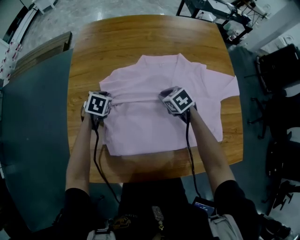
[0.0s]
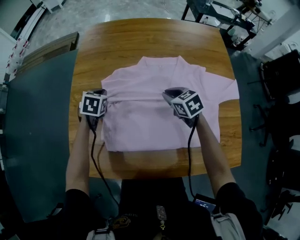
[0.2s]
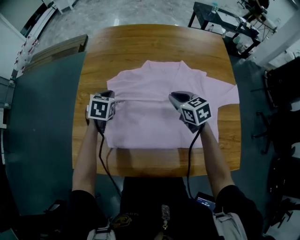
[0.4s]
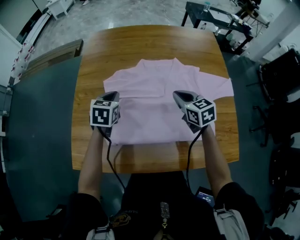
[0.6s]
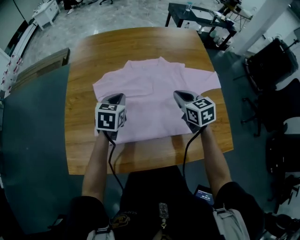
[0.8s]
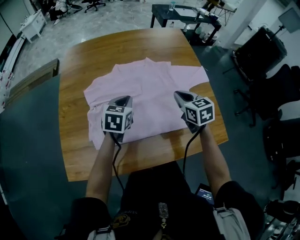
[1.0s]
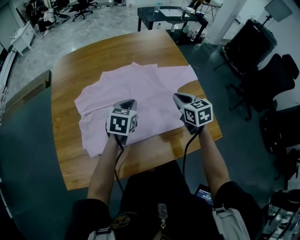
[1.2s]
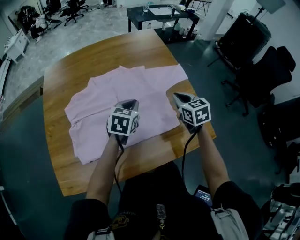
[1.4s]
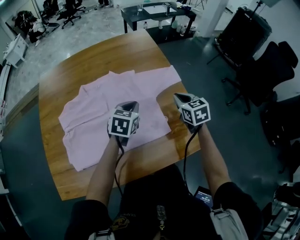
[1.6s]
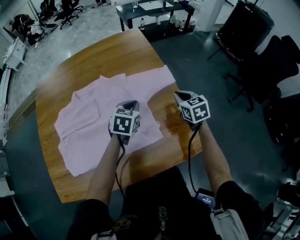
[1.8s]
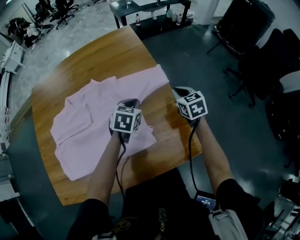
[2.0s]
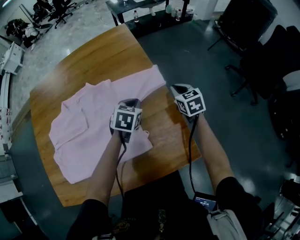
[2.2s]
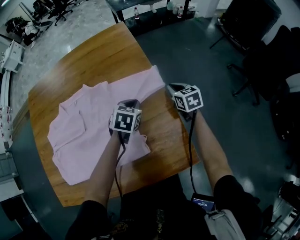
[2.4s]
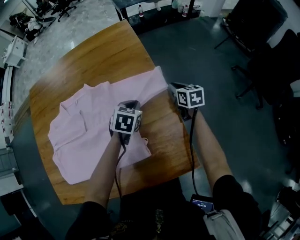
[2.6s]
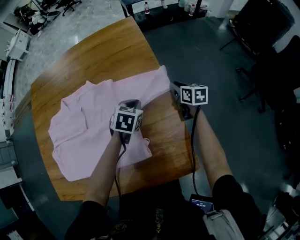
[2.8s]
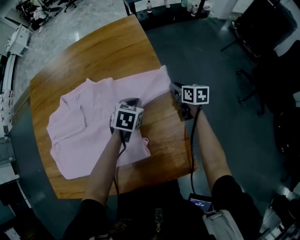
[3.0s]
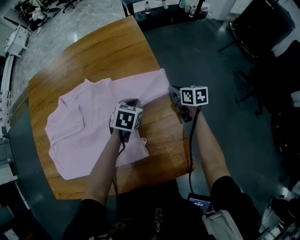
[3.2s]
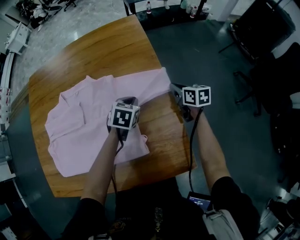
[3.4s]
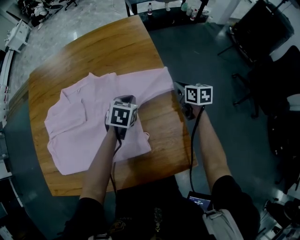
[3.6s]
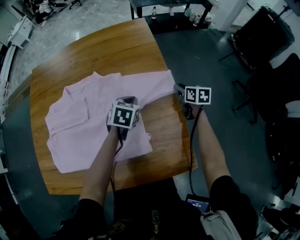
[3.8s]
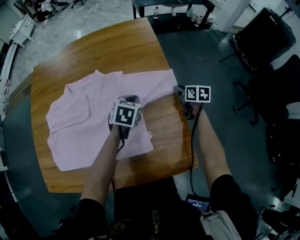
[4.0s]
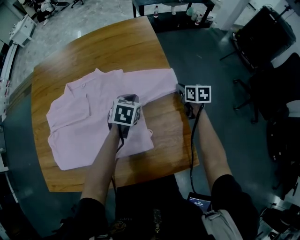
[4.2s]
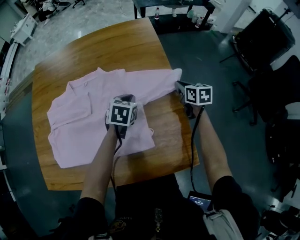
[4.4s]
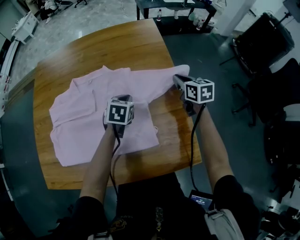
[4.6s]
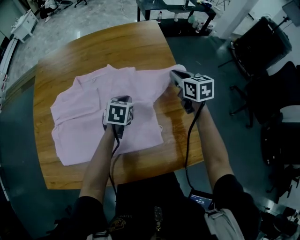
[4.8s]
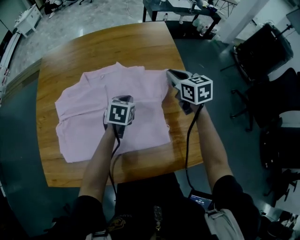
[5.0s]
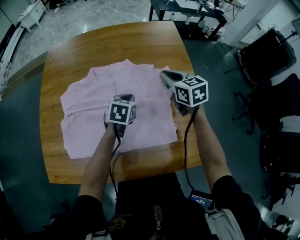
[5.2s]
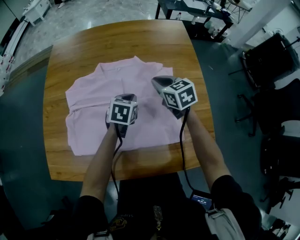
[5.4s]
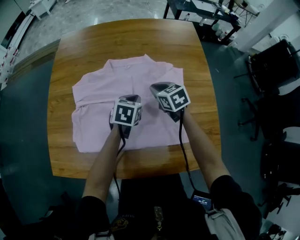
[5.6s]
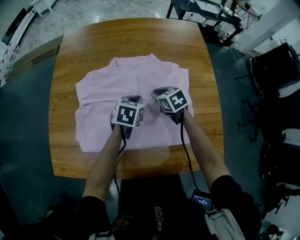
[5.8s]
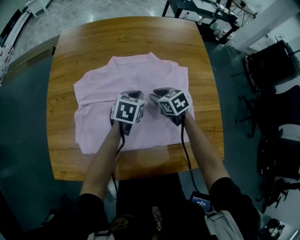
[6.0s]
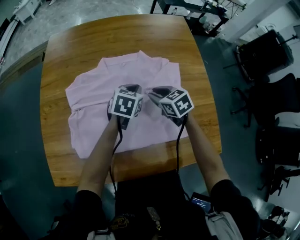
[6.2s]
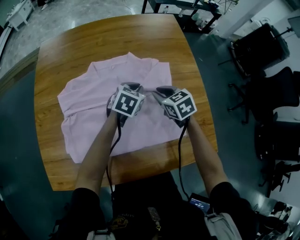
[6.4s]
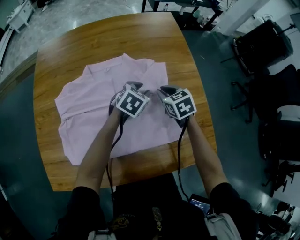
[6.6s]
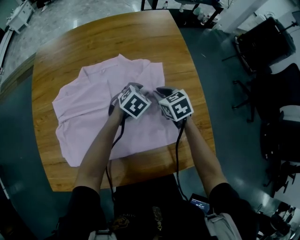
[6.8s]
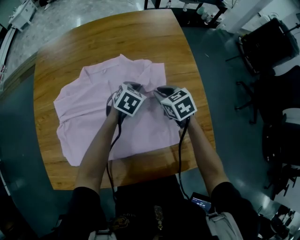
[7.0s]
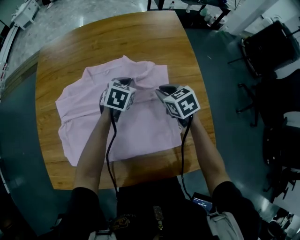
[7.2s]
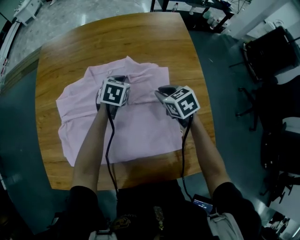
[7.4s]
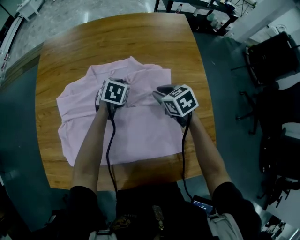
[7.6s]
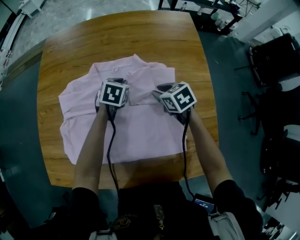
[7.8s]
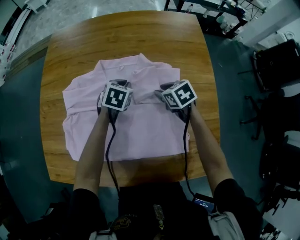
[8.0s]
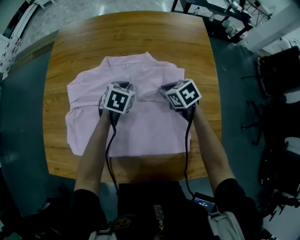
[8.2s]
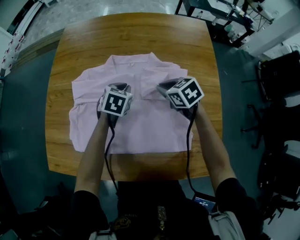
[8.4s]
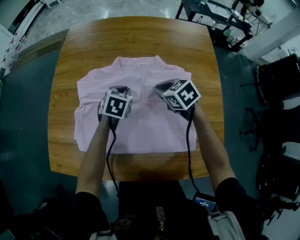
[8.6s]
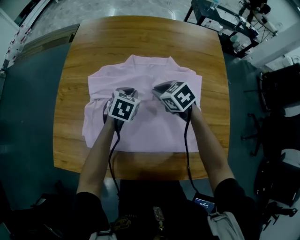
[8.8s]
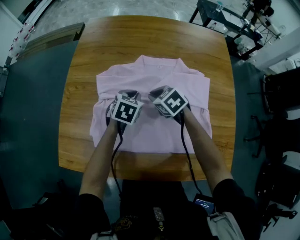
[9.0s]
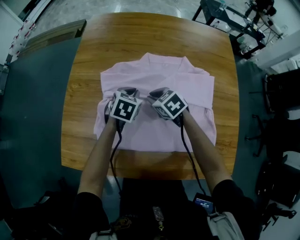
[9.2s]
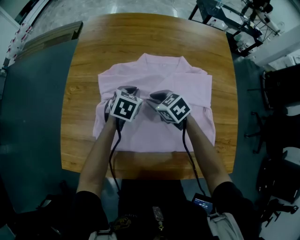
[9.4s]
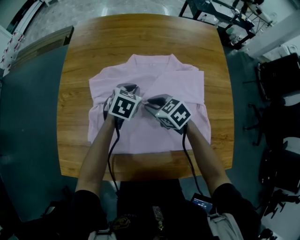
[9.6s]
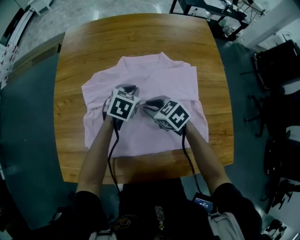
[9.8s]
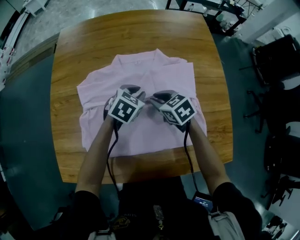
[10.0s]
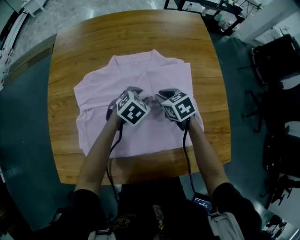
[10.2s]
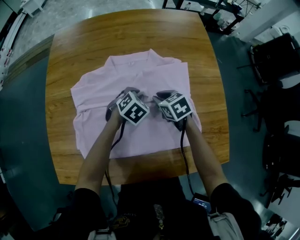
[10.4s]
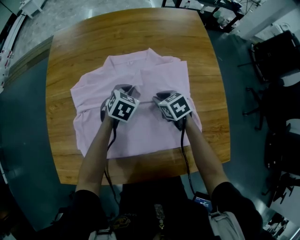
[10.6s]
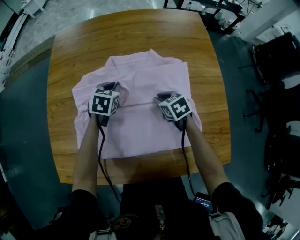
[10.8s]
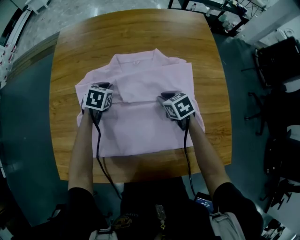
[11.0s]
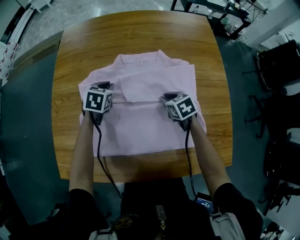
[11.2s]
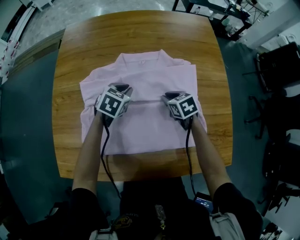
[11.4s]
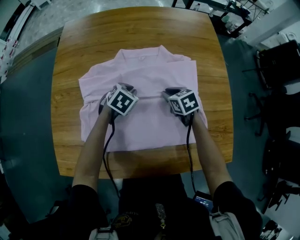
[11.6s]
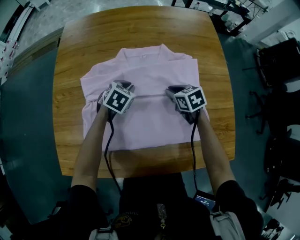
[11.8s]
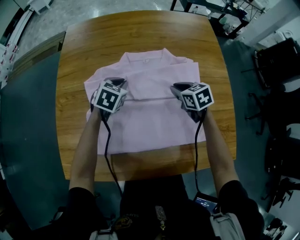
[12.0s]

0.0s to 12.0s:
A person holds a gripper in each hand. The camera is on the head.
0.0s to 1.6s: The right gripper ends up roughly 40 cm from where it was, and turns by about 40 degrees. Meanwhile the left gripper changes place by roughly 50 cm, and changes its angle by roughly 30 degrees.
1.6s to 3.0s: The left gripper goes approximately 20 cm forward, to the right and downward; the right gripper travels forward, downward and to the right by about 25 cm, and rotates some 30 degrees.
3.0s to 4.4s: The left gripper moves to the left, about 5 cm. The right gripper travels upward by roughly 5 cm.
4.4s to 6.0s: The right gripper moves to the left, roughly 40 cm, and turns by approximately 40 degrees. Meanwhile the left gripper moves to the left, about 25 cm.
6.0s to 7.6s: The left gripper goes some 15 cm forward and downward, moves approximately 15 cm to the right and comes back, and opens, then closes once more, while the right gripper moves to the right, approximately 10 cm.
7.6s to 9.0s: The grippers both shift to the left by approximately 20 cm. The right gripper changes its angle by approximately 20 degrees.
9.0s to 10.4s: The left gripper heads to the right and downward, covering about 15 cm, and swivels roughly 30 degrees. Meanwhile the right gripper shifts about 15 cm to the right, and turns by roughly 20 degrees.
10.4s to 12.0s: The left gripper swings left and right, approximately 15 cm each way, with 2 reversals.

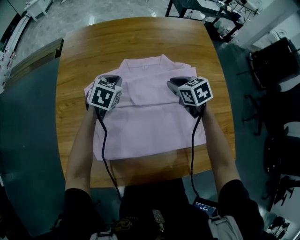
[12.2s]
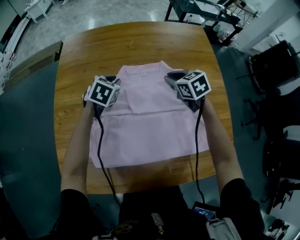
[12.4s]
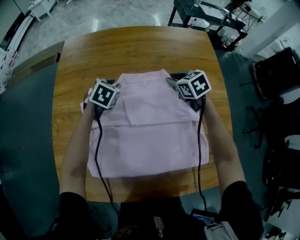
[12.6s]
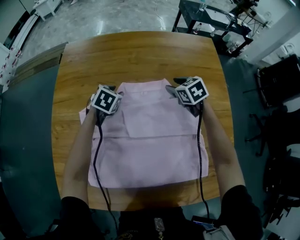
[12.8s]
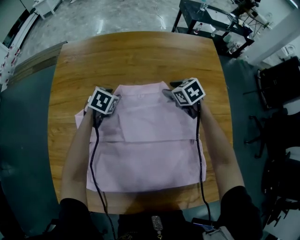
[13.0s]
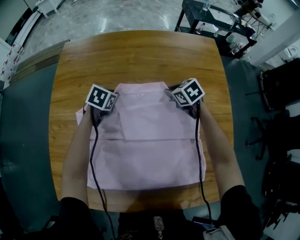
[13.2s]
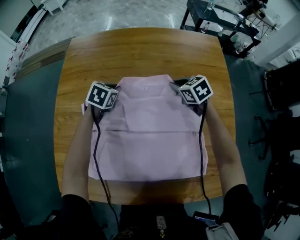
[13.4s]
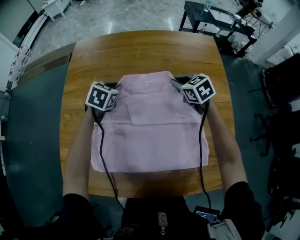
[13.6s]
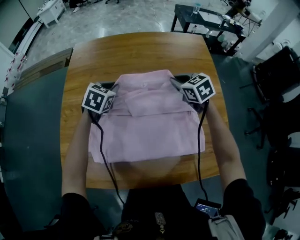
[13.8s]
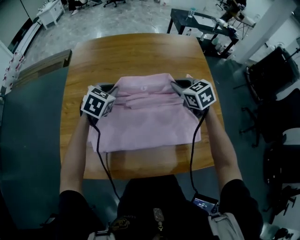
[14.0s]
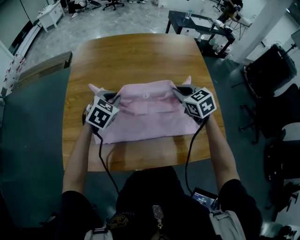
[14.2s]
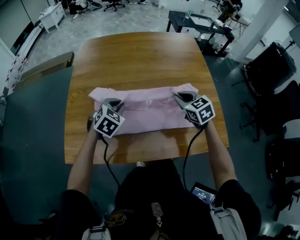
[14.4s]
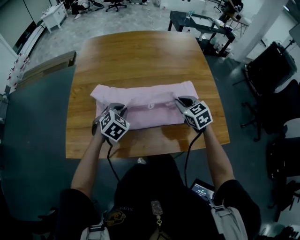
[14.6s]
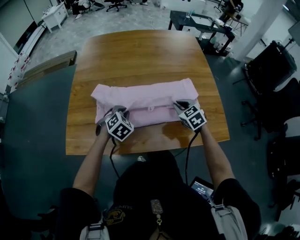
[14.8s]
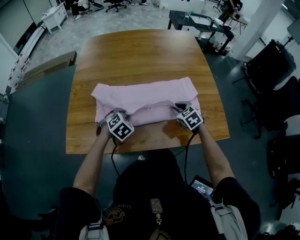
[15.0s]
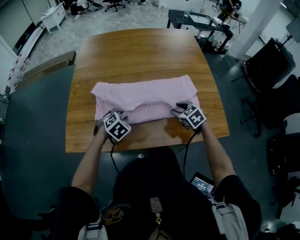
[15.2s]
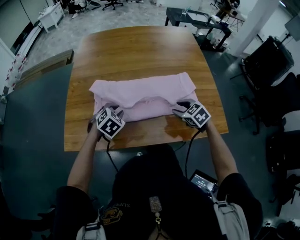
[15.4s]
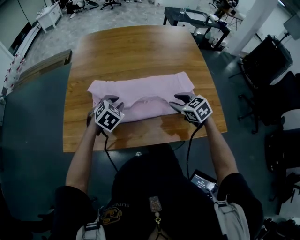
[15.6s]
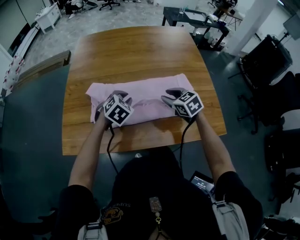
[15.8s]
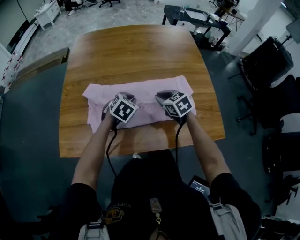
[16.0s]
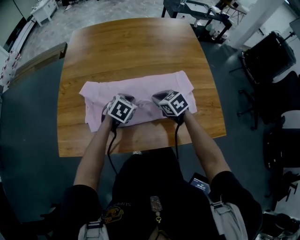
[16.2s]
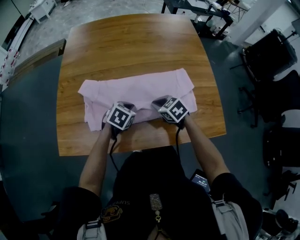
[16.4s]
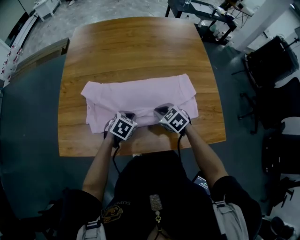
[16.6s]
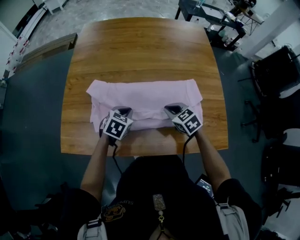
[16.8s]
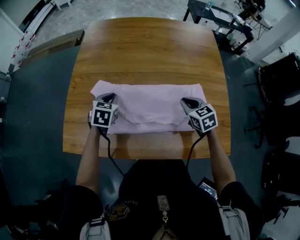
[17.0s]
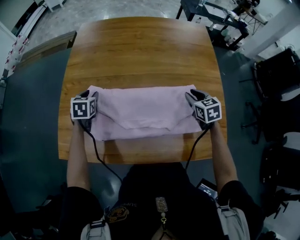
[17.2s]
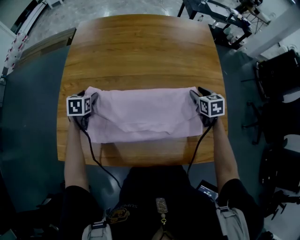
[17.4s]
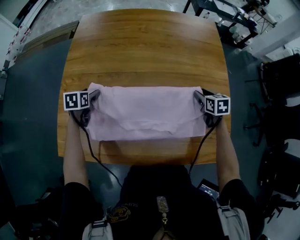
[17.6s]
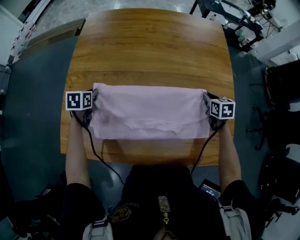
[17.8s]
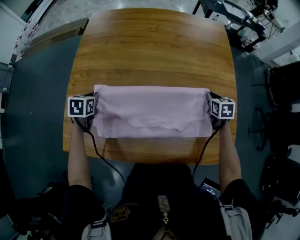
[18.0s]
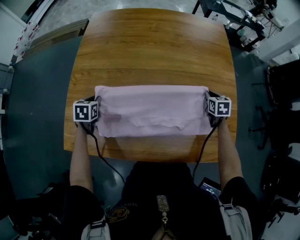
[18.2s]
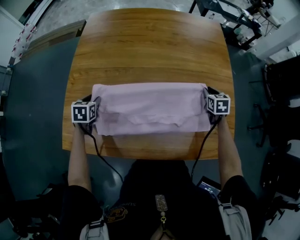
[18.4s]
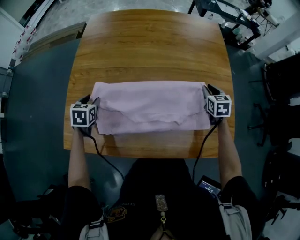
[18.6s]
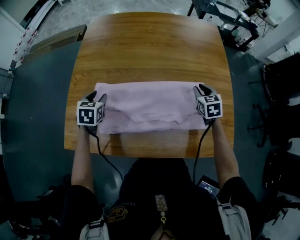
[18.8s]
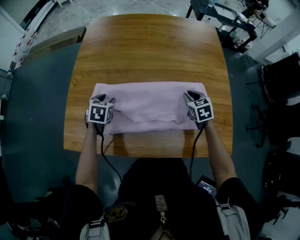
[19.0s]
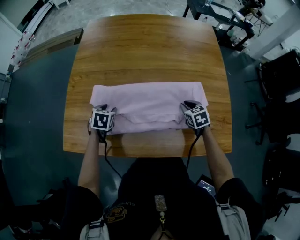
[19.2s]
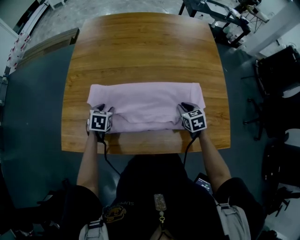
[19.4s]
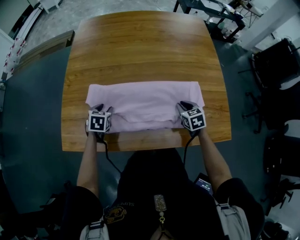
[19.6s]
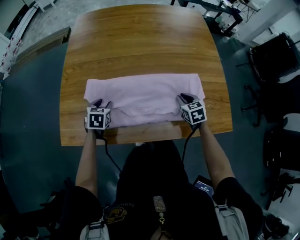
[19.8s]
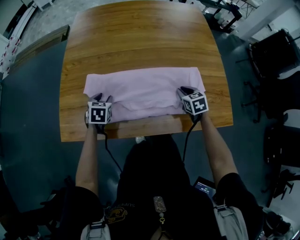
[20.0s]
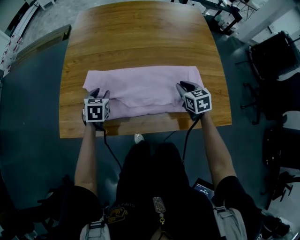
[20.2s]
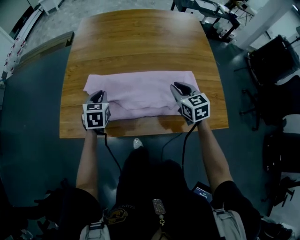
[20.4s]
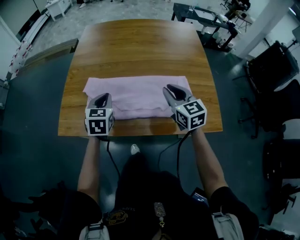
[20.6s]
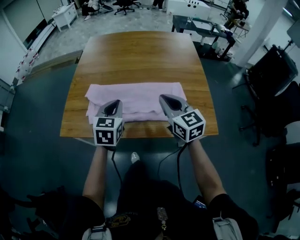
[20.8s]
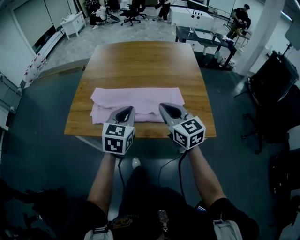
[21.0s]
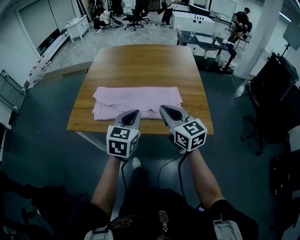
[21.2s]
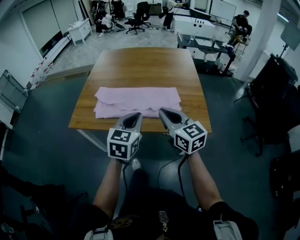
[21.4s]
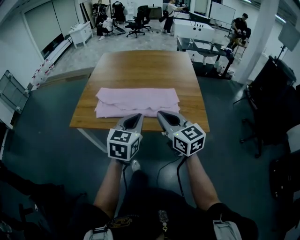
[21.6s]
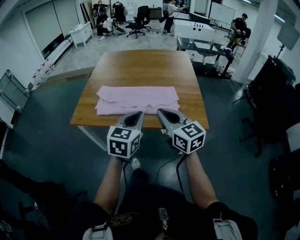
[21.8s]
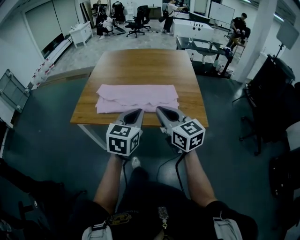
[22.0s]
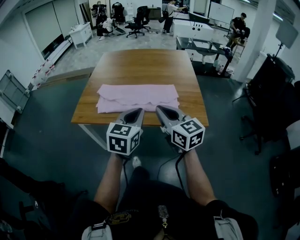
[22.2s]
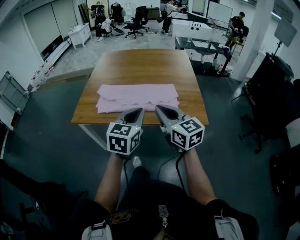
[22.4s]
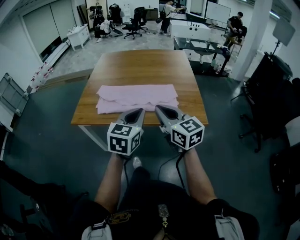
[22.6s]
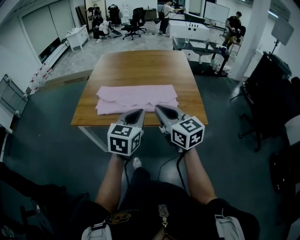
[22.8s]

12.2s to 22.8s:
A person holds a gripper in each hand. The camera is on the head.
12.2s to 13.8s: The left gripper reaches approximately 10 cm downward, then returns, and opens, then closes once more, while the right gripper moves upward, approximately 5 cm, and opens, then closes once more.
13.8s to 15.2s: Both grippers travel together backward, roughly 30 cm. The right gripper opens up. The left gripper changes its angle by some 30 degrees.
15.2s to 16.8s: The right gripper closes, while the left gripper moves to the right, approximately 5 cm, changes its angle by about 30 degrees, and closes its fingers.
16.8s to 18.2s: The right gripper is displaced to the right and forward by roughly 25 cm, swivels about 30 degrees, and opens, then closes again, while the left gripper shifts roughly 25 cm to the left and forward, turns by some 30 degrees, and opens, then closes once more.
18.2s to 19.8s: The right gripper shifts roughly 20 cm backward and to the left; the left gripper shifts some 10 cm backward and to the right, and opens its fingers.
19.8s to 21.2s: The left gripper moves upward, backward and to the right, some 40 cm, points its fingers approximately 30 degrees further upward, and closes its fingers. The right gripper heads upward and backward, covering approximately 35 cm, and angles its fingers upward, by approximately 40 degrees.
21.2s to 22.8s: Both grippers move backward, roughly 10 cm.

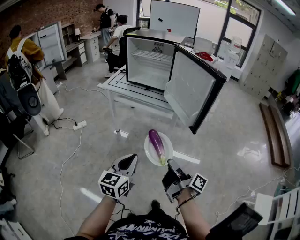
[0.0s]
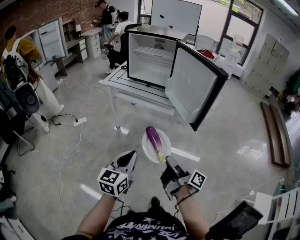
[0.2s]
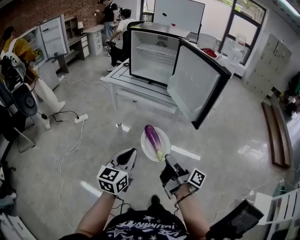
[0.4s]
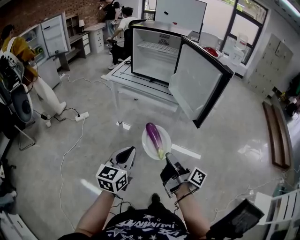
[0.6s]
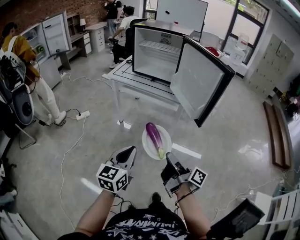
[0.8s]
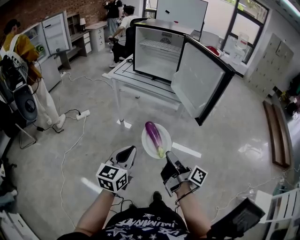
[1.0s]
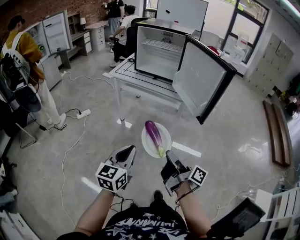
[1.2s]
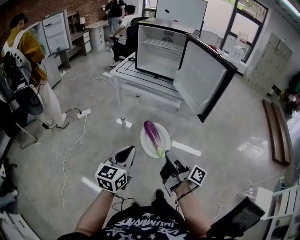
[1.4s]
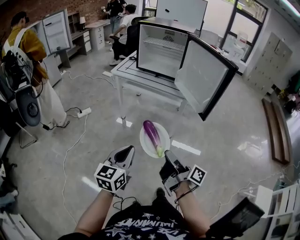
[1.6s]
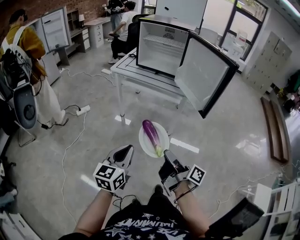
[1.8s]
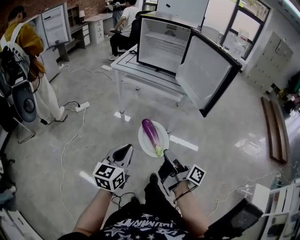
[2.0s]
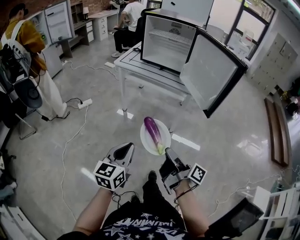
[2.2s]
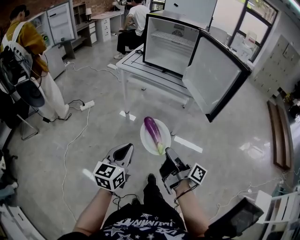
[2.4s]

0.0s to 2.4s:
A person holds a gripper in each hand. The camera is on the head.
0.0s to 1.2s: The left gripper moves roughly 5 cm.
1.2s to 2.4s: The left gripper changes place by about 5 cm.
